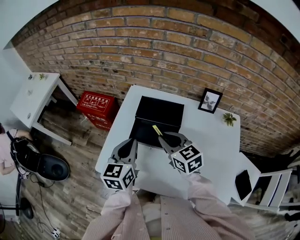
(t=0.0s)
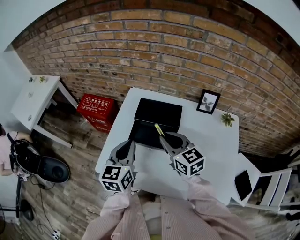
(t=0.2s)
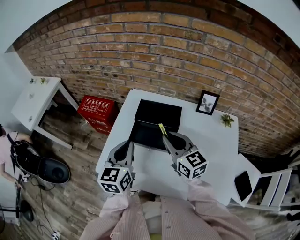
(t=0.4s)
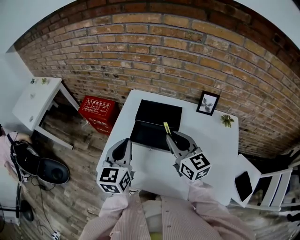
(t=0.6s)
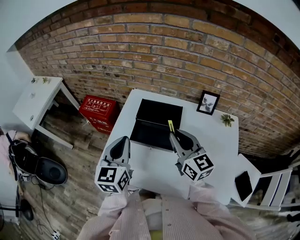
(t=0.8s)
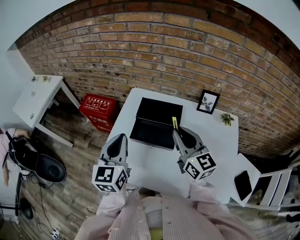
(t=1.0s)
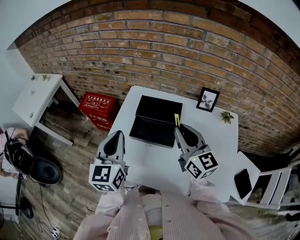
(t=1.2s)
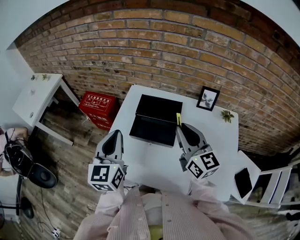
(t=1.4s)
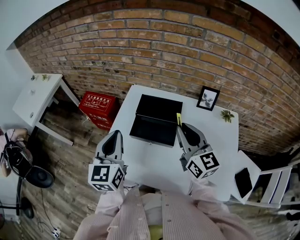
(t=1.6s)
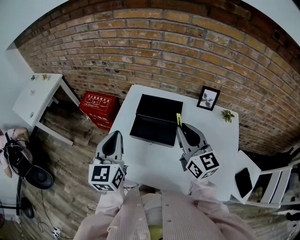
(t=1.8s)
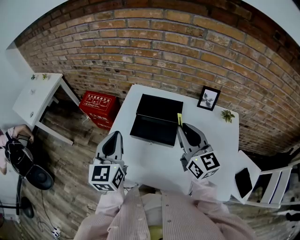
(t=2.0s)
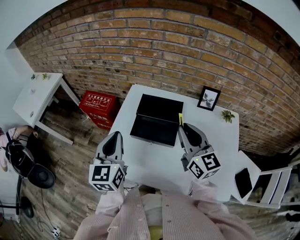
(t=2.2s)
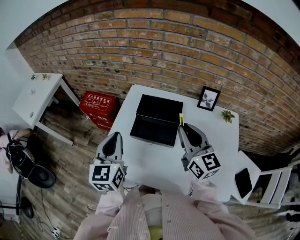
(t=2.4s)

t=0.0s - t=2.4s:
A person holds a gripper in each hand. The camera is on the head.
t=0.0s - t=1.2s: The right gripper goes about 10 cm upward and to the right, and rotates some 30 degrees, while the left gripper travels upward by roughly 10 cm.
t=1.2s - t=2.4s: The grippers stay close to where they were, moving slightly.

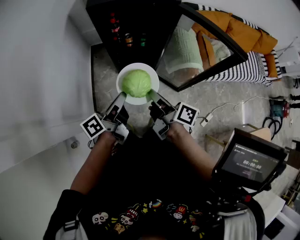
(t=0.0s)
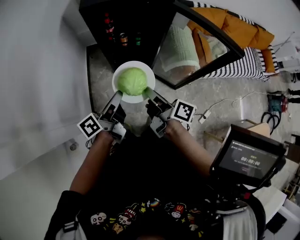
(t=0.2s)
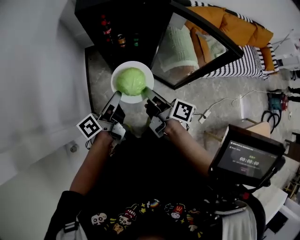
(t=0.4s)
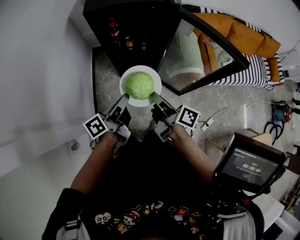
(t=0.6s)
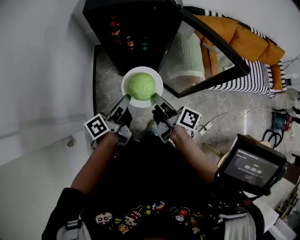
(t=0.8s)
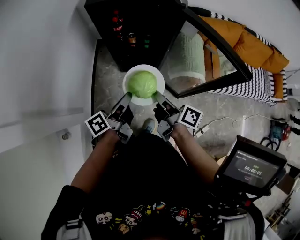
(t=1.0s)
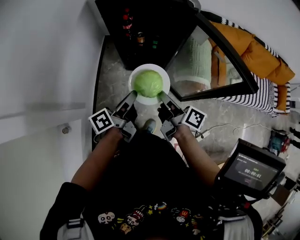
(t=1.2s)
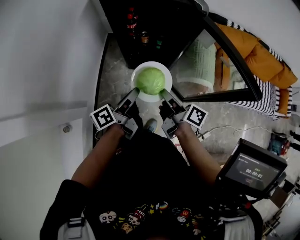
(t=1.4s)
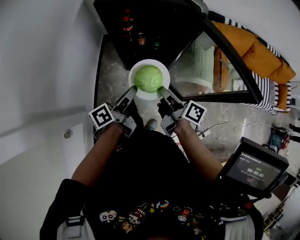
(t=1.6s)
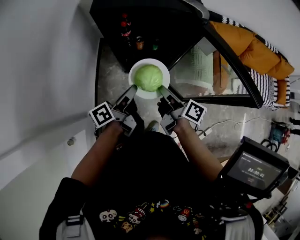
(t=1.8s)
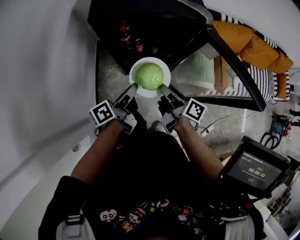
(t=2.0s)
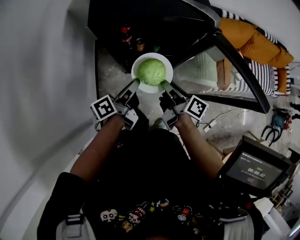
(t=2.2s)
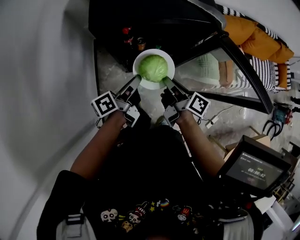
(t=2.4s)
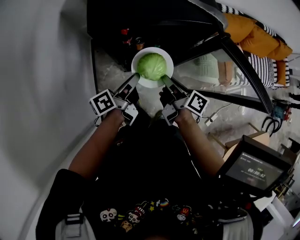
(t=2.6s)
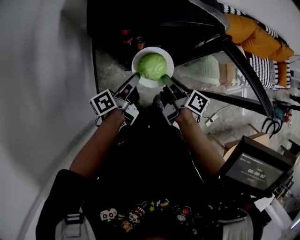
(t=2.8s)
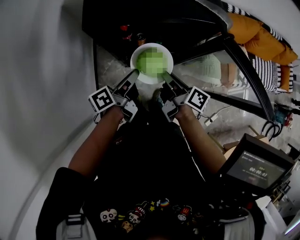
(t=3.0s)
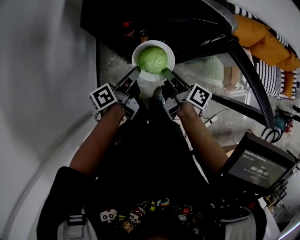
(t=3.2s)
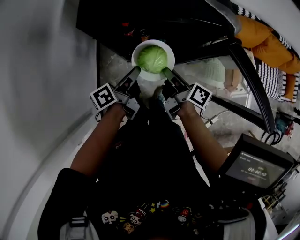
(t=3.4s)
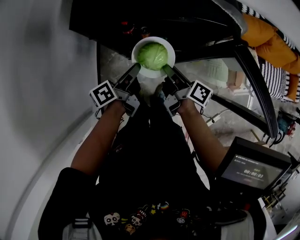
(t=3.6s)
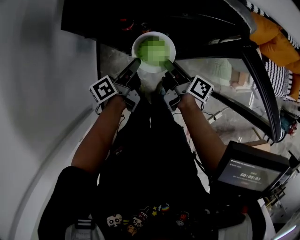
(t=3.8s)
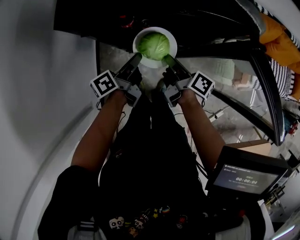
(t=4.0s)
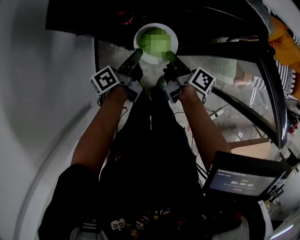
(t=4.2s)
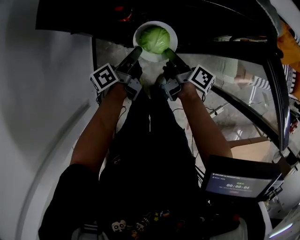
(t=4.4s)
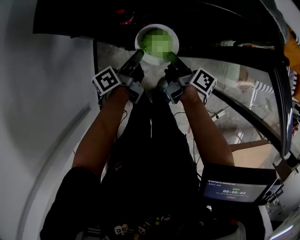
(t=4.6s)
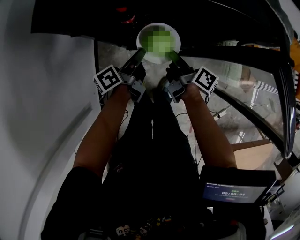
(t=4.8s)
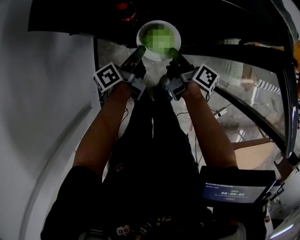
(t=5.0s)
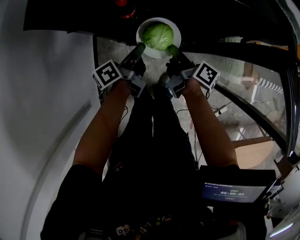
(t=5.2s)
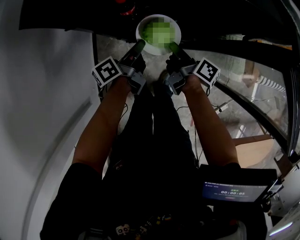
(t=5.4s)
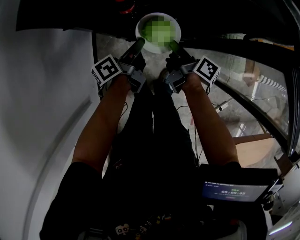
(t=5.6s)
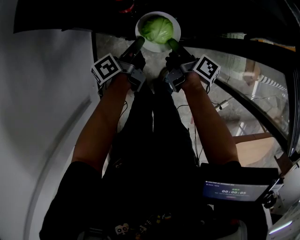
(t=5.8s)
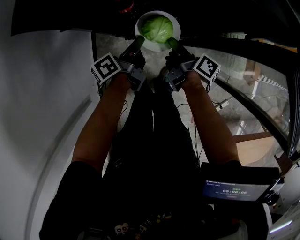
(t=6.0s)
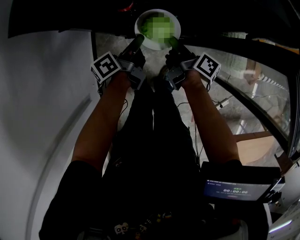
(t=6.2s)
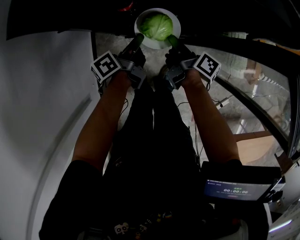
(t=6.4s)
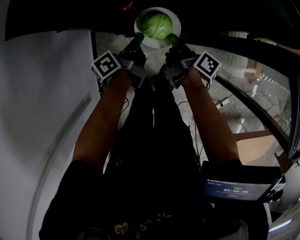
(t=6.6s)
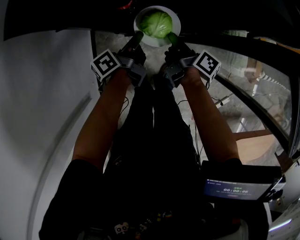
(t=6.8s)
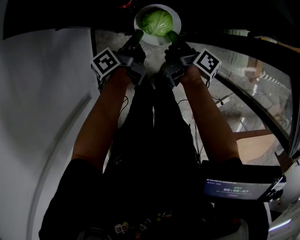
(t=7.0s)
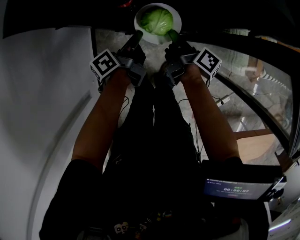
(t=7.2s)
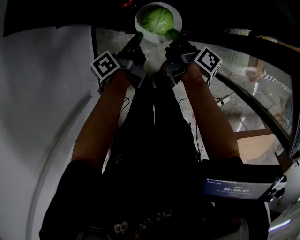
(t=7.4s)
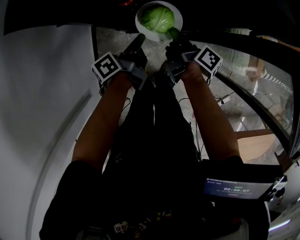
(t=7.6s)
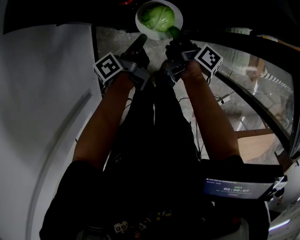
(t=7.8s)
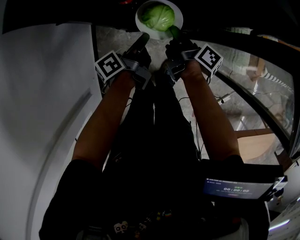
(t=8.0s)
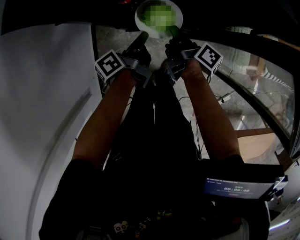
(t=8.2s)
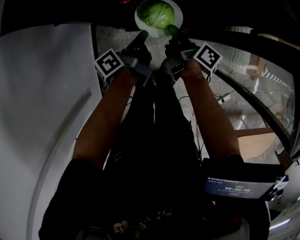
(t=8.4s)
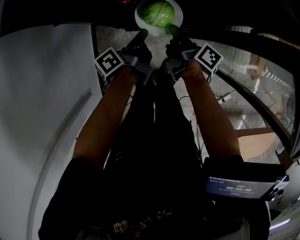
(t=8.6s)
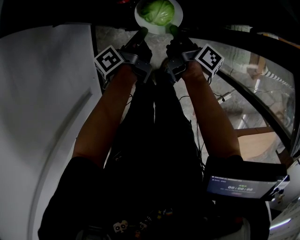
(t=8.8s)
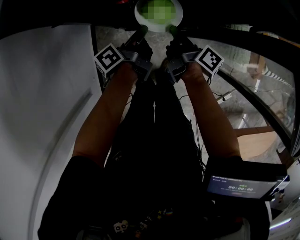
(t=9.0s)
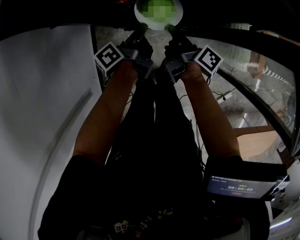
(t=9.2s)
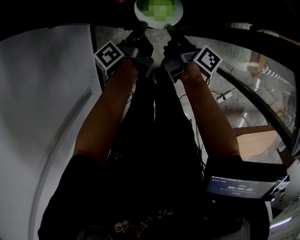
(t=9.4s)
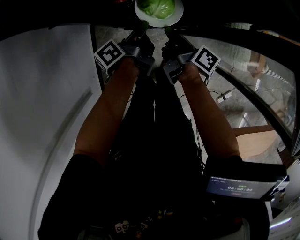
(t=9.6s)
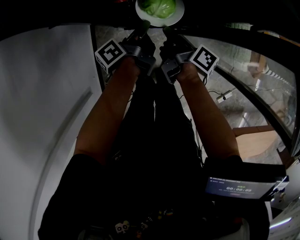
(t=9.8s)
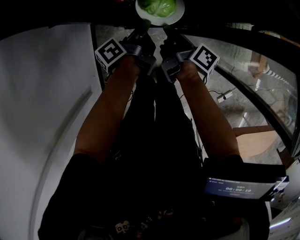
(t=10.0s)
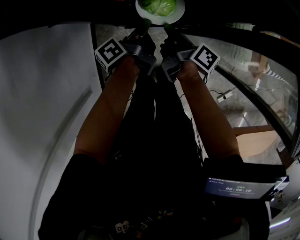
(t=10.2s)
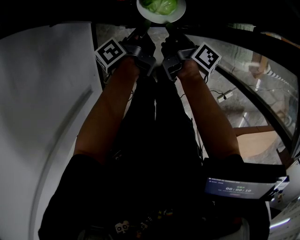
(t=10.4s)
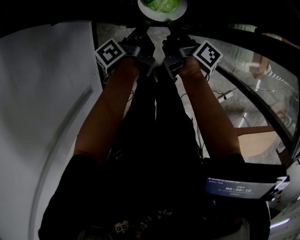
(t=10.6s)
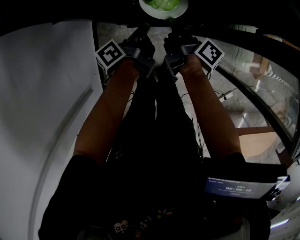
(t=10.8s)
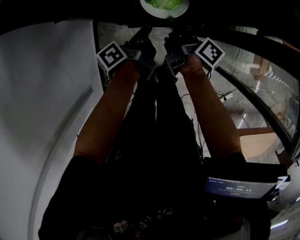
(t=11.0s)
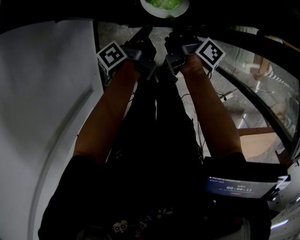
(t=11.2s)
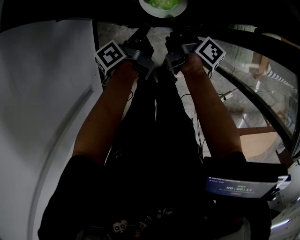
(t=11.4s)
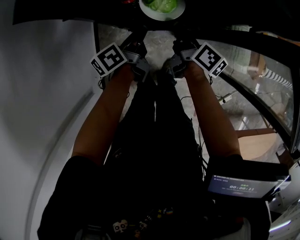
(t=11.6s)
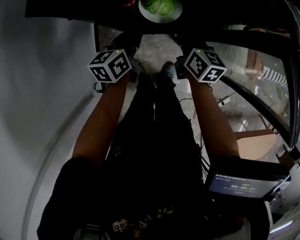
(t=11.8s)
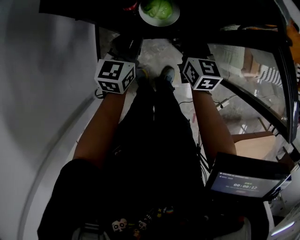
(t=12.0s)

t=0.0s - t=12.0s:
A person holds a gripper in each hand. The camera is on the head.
t=0.0s - t=4.4s: The grippers stay close to where they were, moving slightly.
t=4.4s - t=6.0s: Both grippers stay about where they are.
t=6.0s - t=10.4s: The grippers make only small movements.
t=10.4s - t=12.0s: The right gripper is displaced to the right by about 5 cm, and rotates around the line of its fingers by some 70 degrees, counterclockwise from behind. Meanwhile the left gripper twists about 80 degrees clockwise, seen from behind.

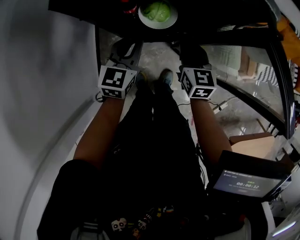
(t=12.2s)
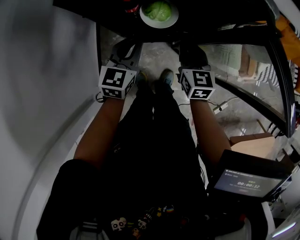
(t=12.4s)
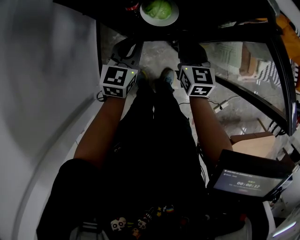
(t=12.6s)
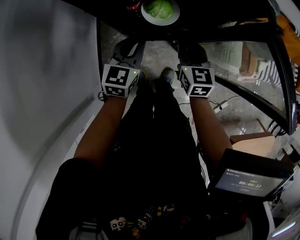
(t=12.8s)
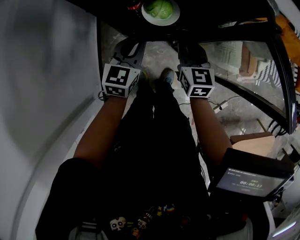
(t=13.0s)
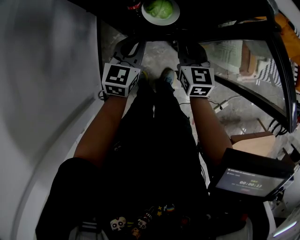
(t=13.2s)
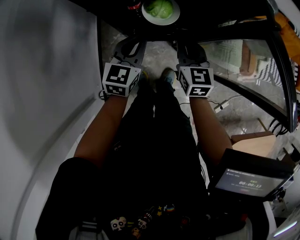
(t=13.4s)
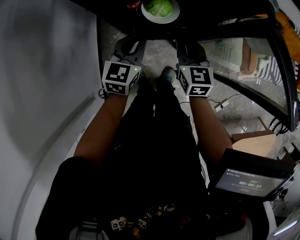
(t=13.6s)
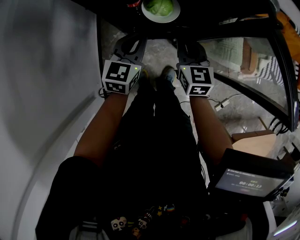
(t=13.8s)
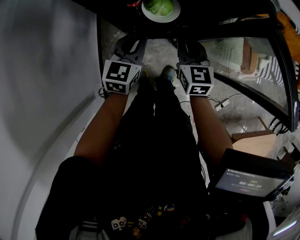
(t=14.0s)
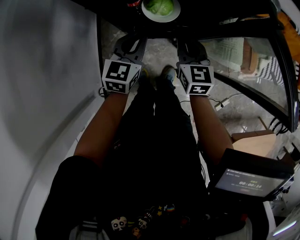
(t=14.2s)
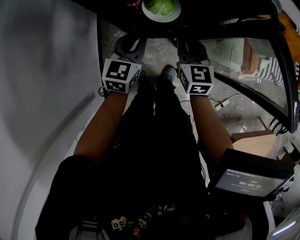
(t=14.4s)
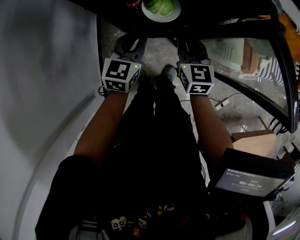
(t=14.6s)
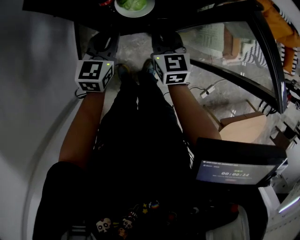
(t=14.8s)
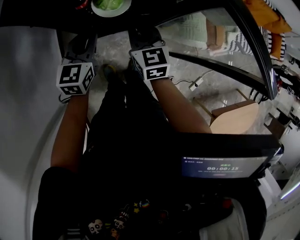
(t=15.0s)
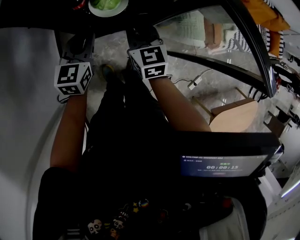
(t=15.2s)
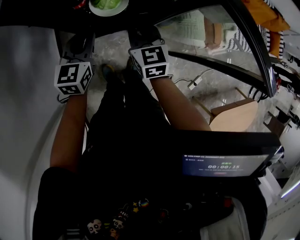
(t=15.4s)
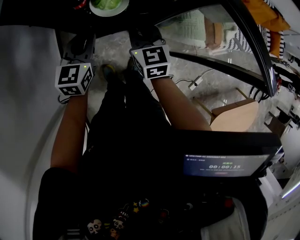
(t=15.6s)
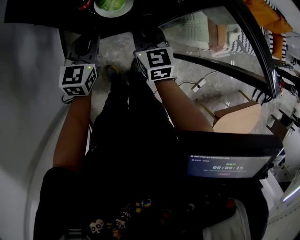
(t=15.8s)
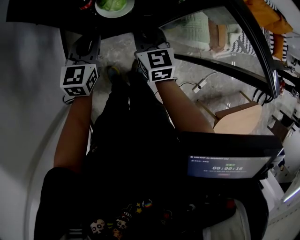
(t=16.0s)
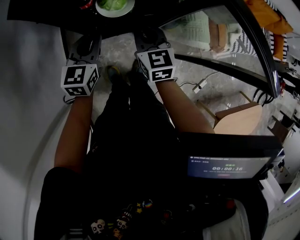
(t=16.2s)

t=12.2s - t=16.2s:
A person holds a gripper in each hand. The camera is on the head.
t=12.2s - t=16.2s: The grippers make only small movements.

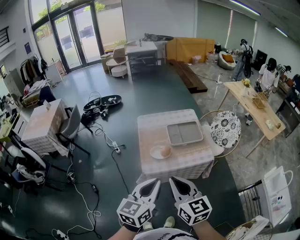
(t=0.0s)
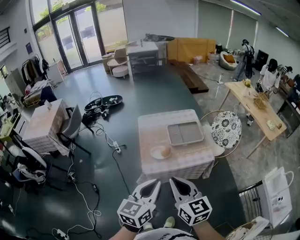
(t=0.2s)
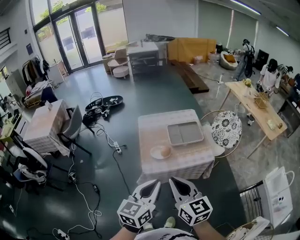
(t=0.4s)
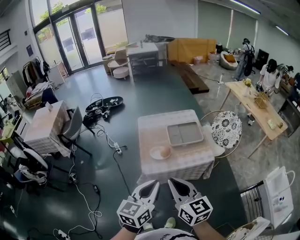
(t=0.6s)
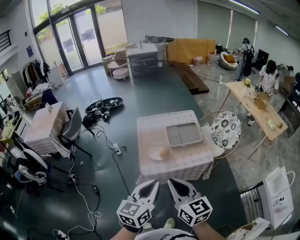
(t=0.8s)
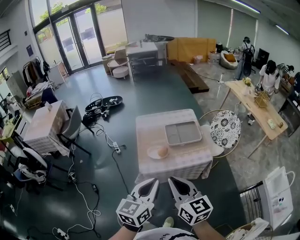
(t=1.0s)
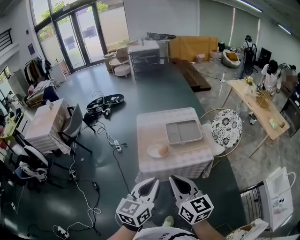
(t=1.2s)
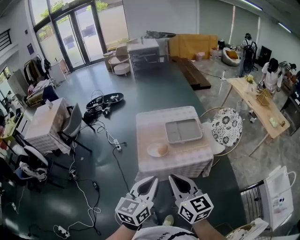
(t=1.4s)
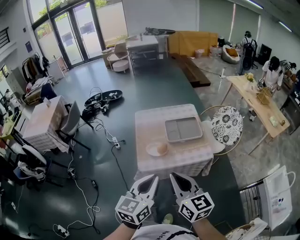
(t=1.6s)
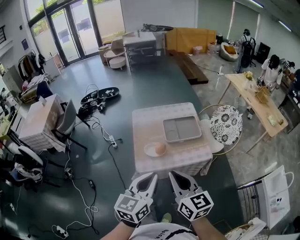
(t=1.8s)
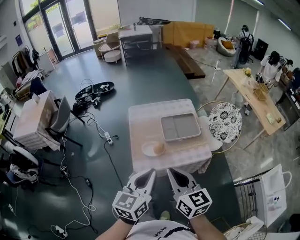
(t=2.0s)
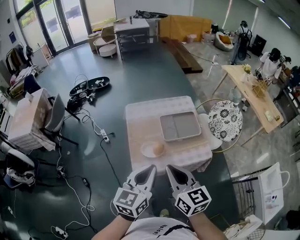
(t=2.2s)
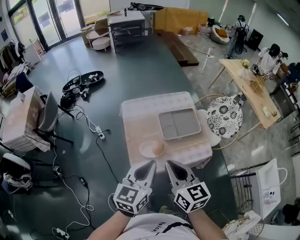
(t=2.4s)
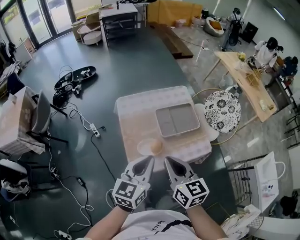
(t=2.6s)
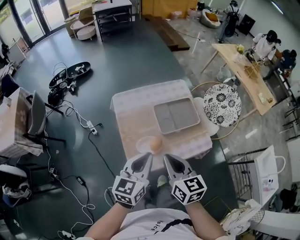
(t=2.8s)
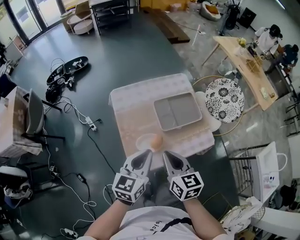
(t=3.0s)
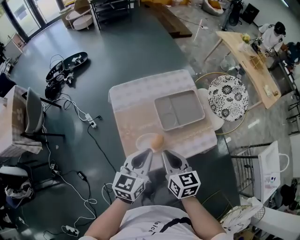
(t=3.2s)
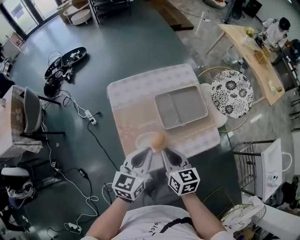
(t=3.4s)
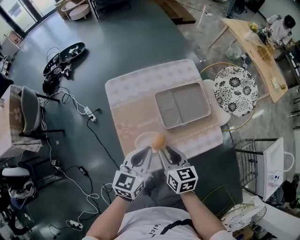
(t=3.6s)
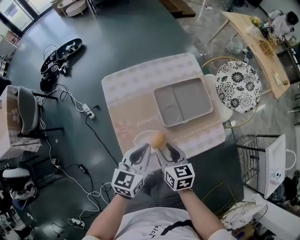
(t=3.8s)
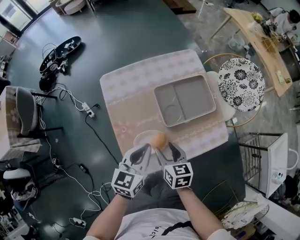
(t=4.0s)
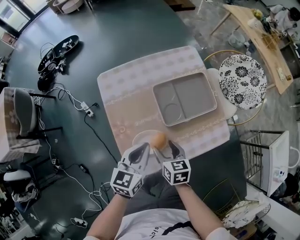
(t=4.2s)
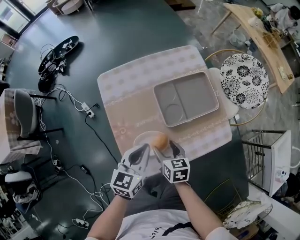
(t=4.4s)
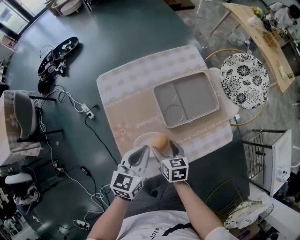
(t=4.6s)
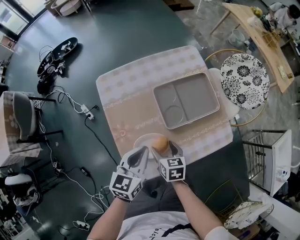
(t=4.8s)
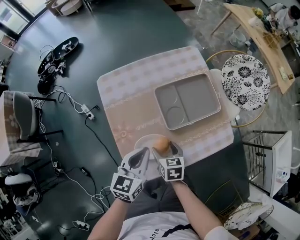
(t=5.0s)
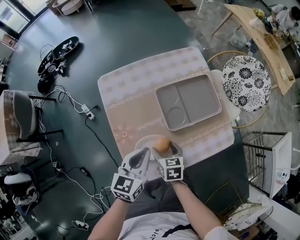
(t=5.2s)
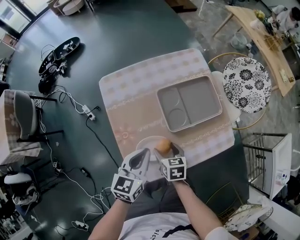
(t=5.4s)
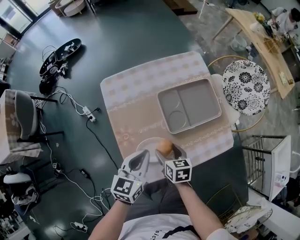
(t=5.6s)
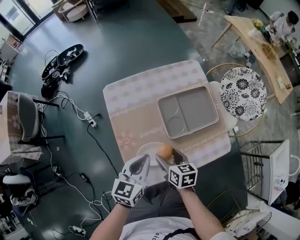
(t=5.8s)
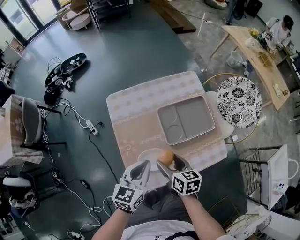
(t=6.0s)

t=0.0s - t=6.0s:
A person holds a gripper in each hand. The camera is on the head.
t=0.0s - t=1.6s: The right gripper moves some 5 cm.
t=1.6s - t=3.0s: The grippers both shift forward and downward by some 25 cm. The right gripper swivels about 20 degrees.
t=3.0s - t=4.4s: The left gripper shifts about 15 cm downward and forward. The right gripper is displaced downward by some 25 cm, rotates roughly 20 degrees, and opens.
t=4.4s - t=6.0s: The right gripper heads upward, covering roughly 10 cm.
